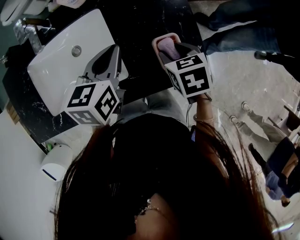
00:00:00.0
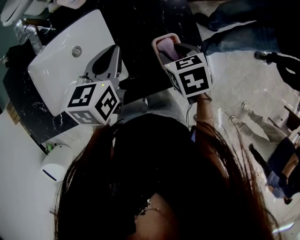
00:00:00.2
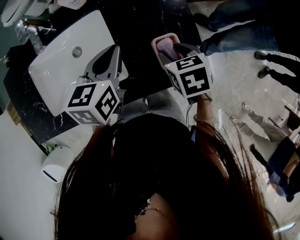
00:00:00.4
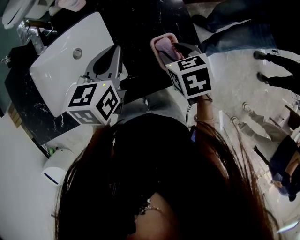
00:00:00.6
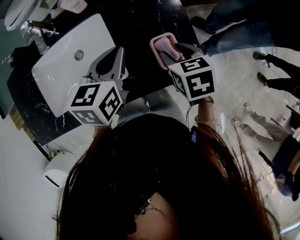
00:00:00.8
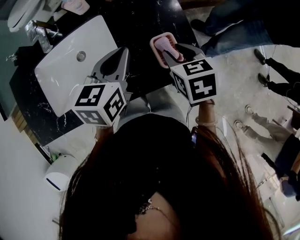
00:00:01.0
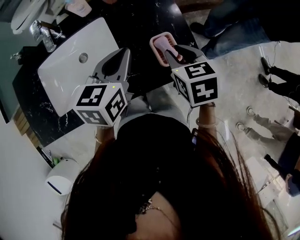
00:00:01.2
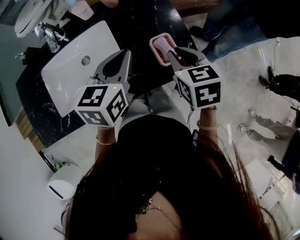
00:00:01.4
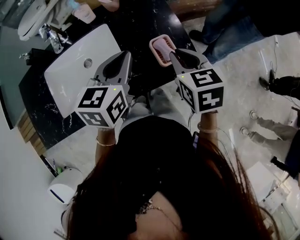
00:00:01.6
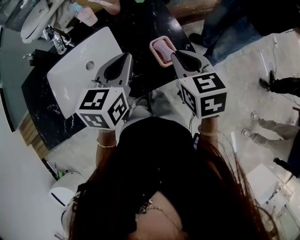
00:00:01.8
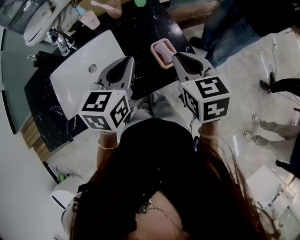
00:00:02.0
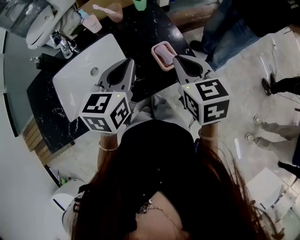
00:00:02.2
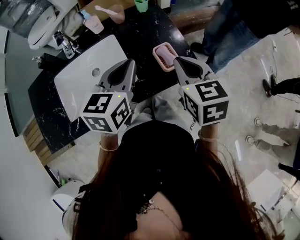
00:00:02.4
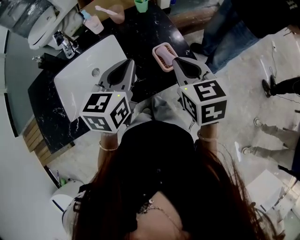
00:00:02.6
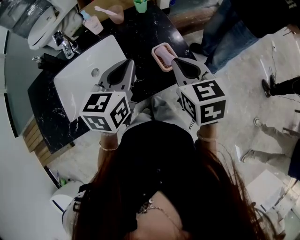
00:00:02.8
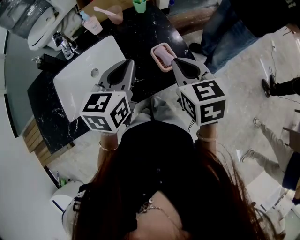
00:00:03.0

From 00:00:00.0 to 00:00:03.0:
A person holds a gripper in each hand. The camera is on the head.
From 00:00:00.0 to 00:00:01.6: Both grippers move upward and backward, some 15 cm. The right gripper swivels roughly 20 degrees, and closes its fingers.
From 00:00:01.6 to 00:00:03.0: The right gripper moves upward, some 5 cm; the left gripper shifts by approximately 5 cm.

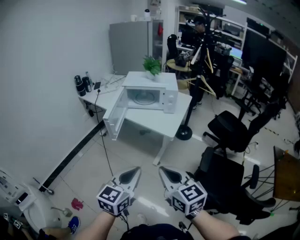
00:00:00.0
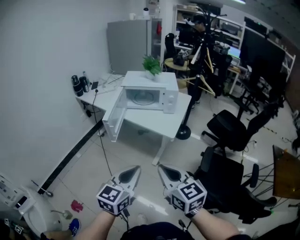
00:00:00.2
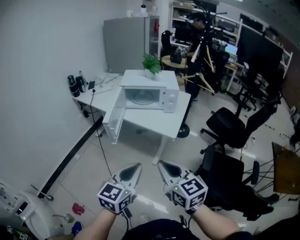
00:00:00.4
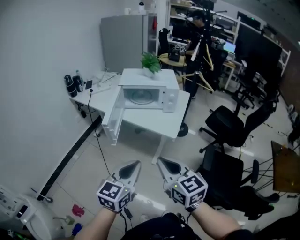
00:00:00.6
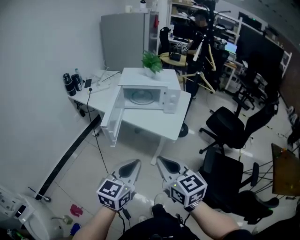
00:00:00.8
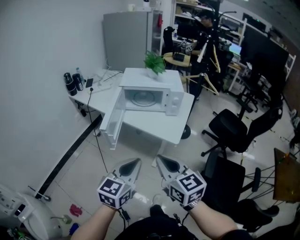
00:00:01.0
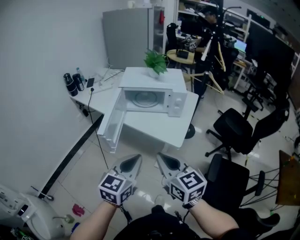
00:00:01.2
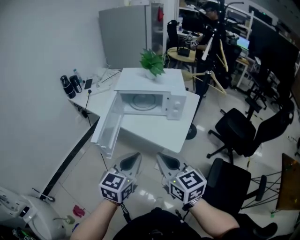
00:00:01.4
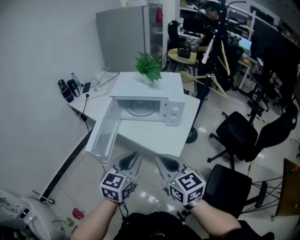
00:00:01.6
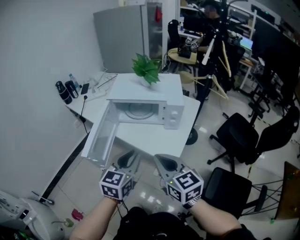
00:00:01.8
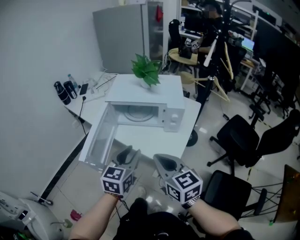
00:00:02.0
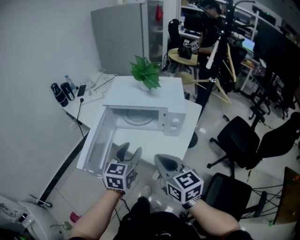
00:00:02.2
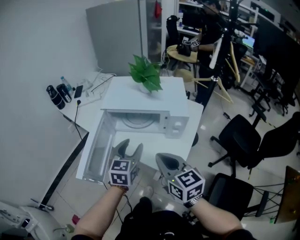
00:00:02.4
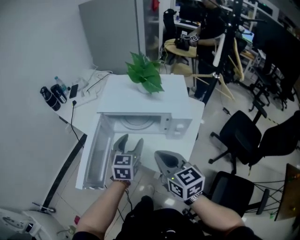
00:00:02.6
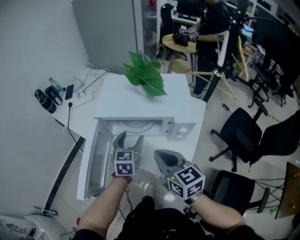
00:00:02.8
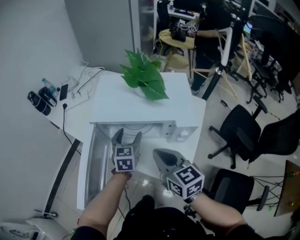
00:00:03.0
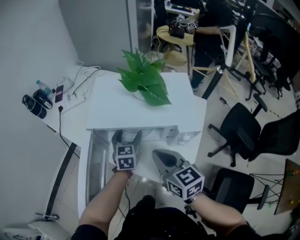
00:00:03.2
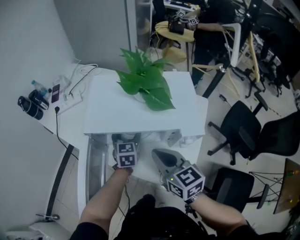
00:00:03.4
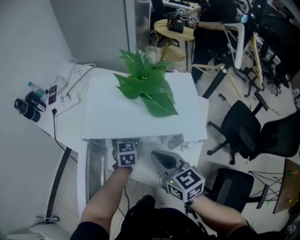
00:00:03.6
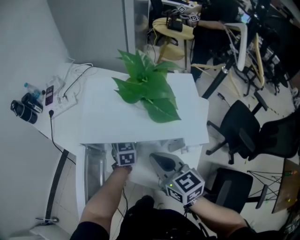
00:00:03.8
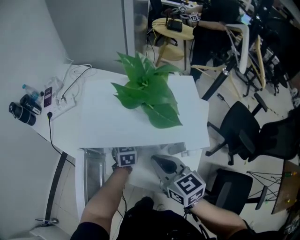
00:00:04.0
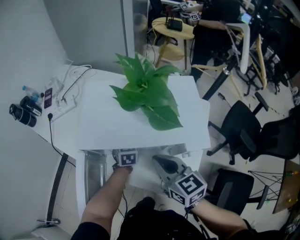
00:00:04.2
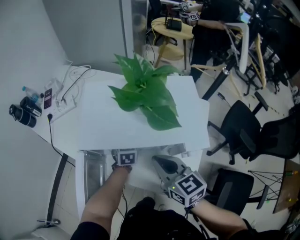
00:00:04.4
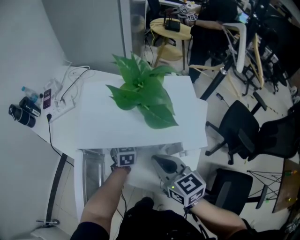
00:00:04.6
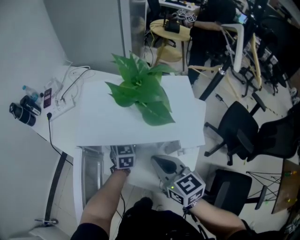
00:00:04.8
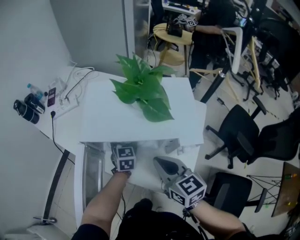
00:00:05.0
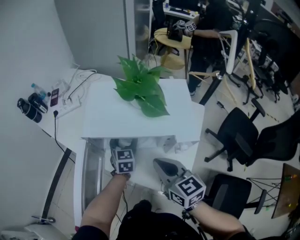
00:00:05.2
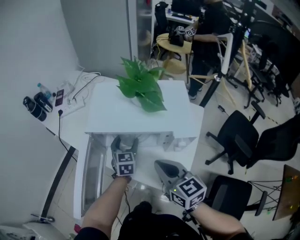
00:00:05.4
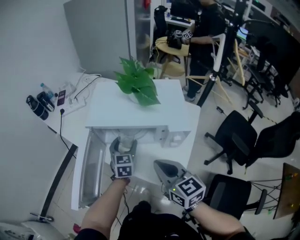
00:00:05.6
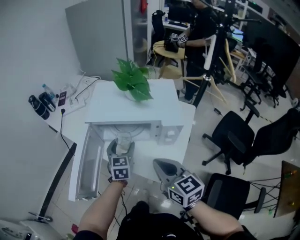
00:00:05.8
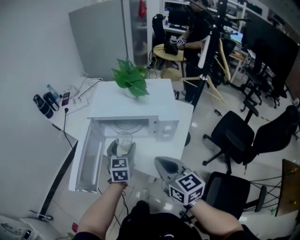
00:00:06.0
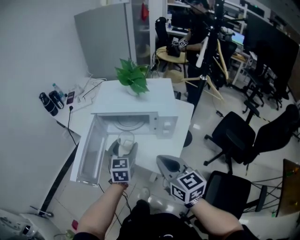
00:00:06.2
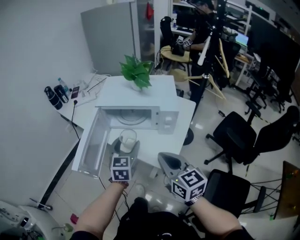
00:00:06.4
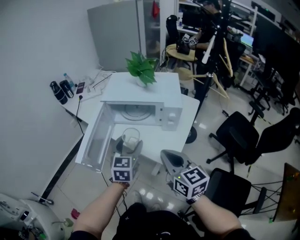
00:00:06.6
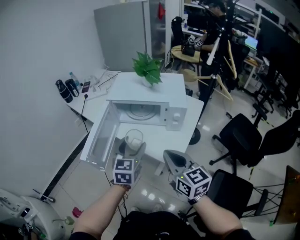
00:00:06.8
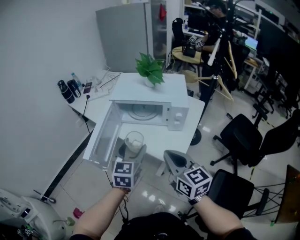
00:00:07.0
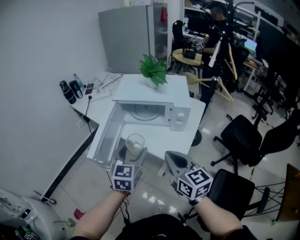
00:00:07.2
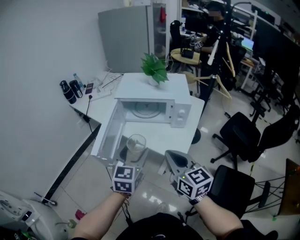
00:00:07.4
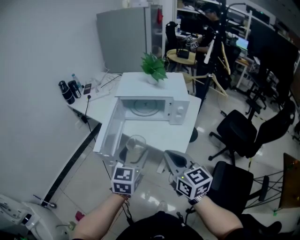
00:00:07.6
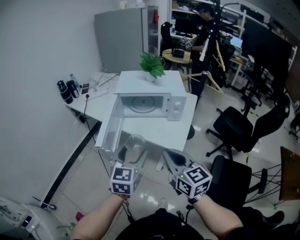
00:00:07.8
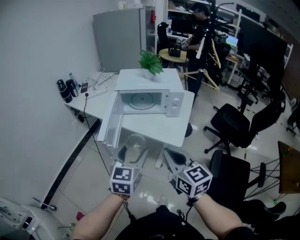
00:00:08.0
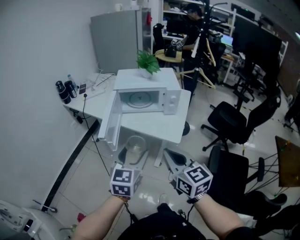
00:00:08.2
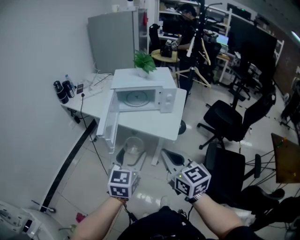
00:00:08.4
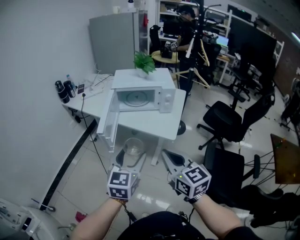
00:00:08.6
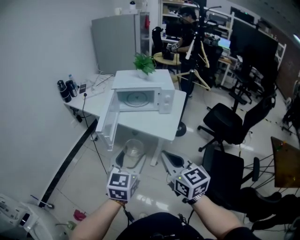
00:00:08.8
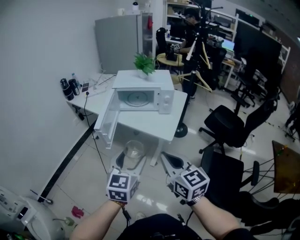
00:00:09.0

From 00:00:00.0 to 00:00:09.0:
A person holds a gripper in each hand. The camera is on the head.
From 00:00:00.0 to 00:00:01.6: The grippers both shift forward by approximately 30 cm.
From 00:00:01.6 to 00:00:03.0: The right gripper goes some 25 cm forward, while the left gripper heads forward and downward, covering approximately 40 cm, and opens.
From 00:00:03.0 to 00:00:04.4: The right gripper goes approximately 10 cm forward. Meanwhile the left gripper moves forward and downward, roughly 15 cm.
From 00:00:04.4 to 00:00:06.0: The right gripper shifts roughly 20 cm backward, while the left gripper heads backward and upward, covering approximately 25 cm.
From 00:00:06.0 to 00:00:07.6: The left gripper goes approximately 25 cm backward and upward. Meanwhile the right gripper travels backward and to the left by about 15 cm.
From 00:00:07.6 to 00:00:09.0: The two grippers go roughly 20 cm backward.

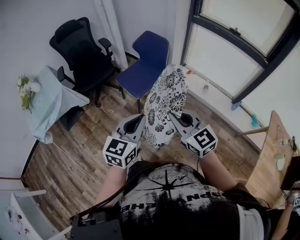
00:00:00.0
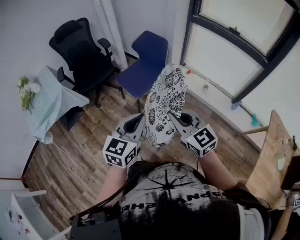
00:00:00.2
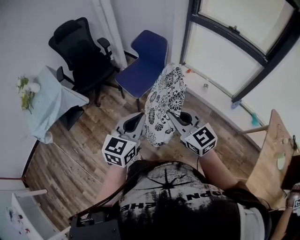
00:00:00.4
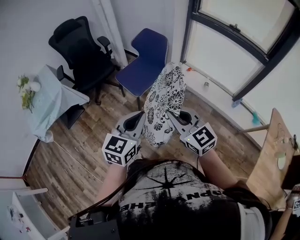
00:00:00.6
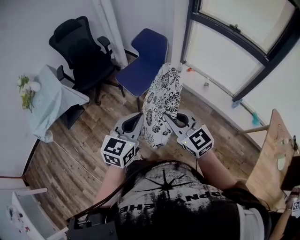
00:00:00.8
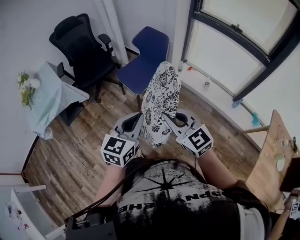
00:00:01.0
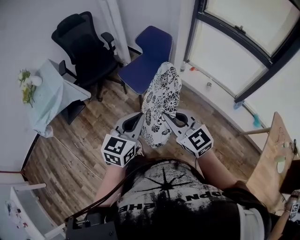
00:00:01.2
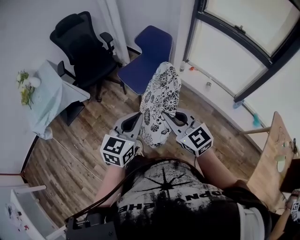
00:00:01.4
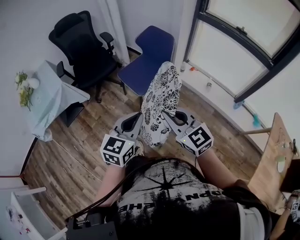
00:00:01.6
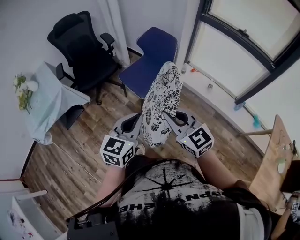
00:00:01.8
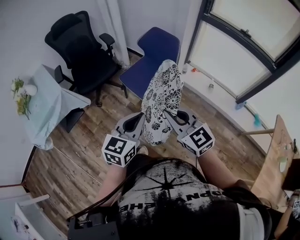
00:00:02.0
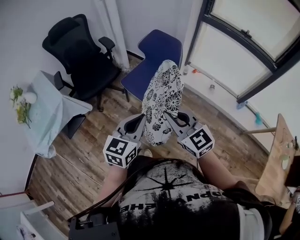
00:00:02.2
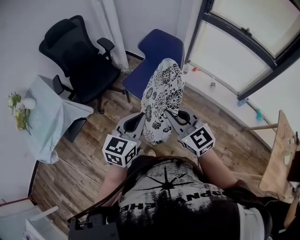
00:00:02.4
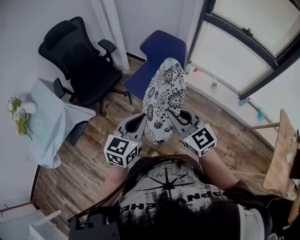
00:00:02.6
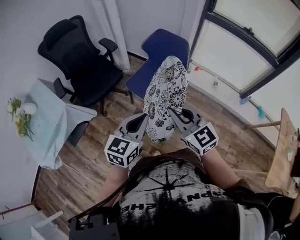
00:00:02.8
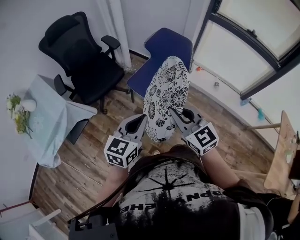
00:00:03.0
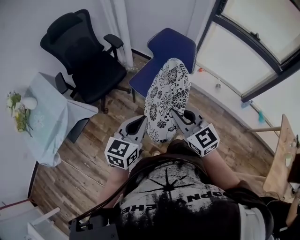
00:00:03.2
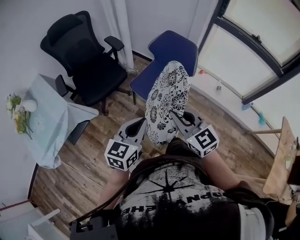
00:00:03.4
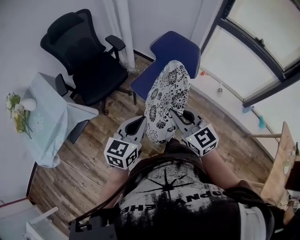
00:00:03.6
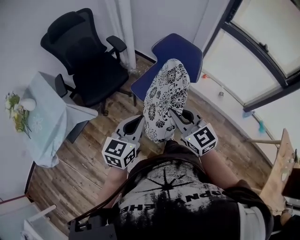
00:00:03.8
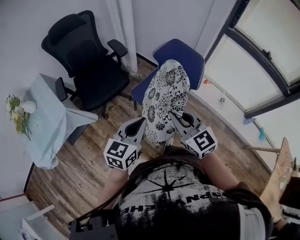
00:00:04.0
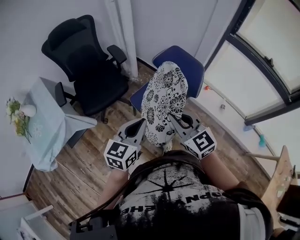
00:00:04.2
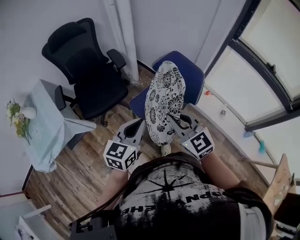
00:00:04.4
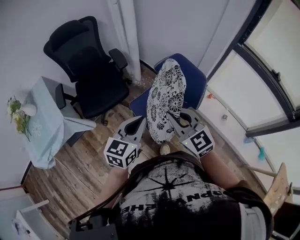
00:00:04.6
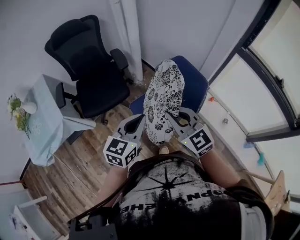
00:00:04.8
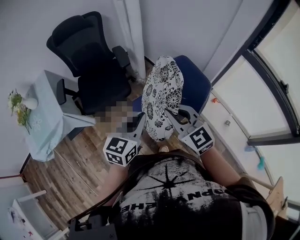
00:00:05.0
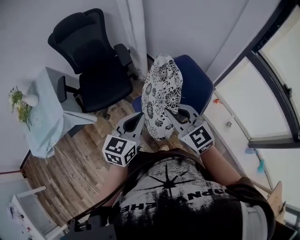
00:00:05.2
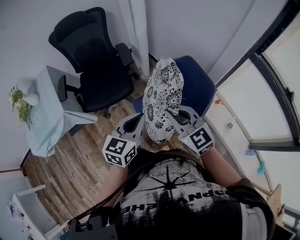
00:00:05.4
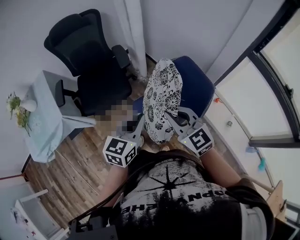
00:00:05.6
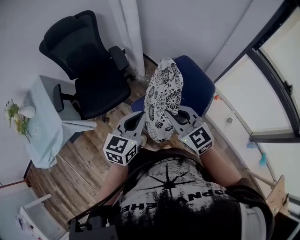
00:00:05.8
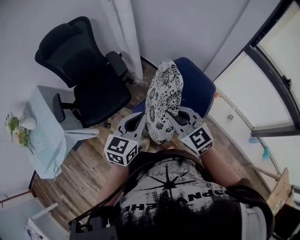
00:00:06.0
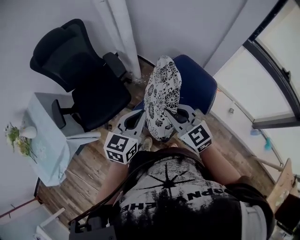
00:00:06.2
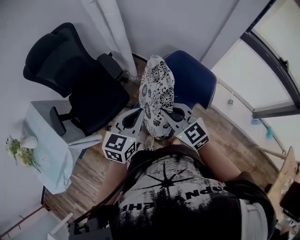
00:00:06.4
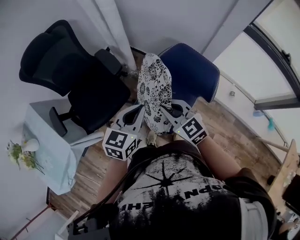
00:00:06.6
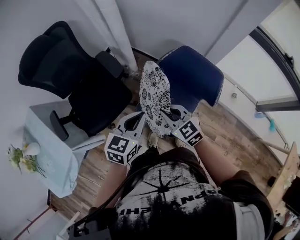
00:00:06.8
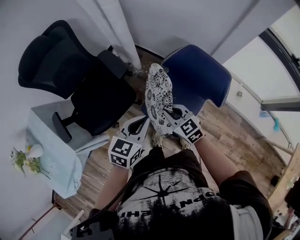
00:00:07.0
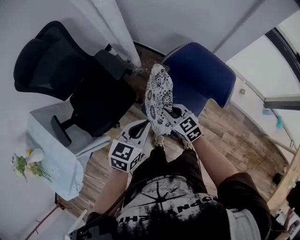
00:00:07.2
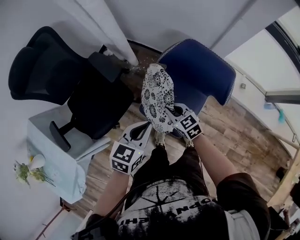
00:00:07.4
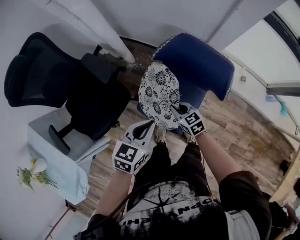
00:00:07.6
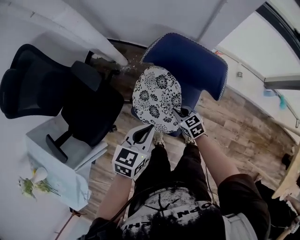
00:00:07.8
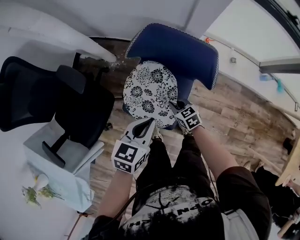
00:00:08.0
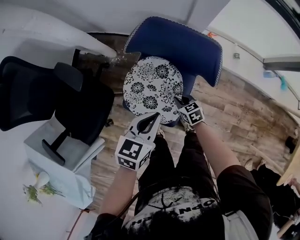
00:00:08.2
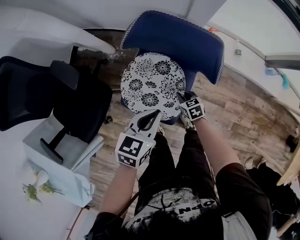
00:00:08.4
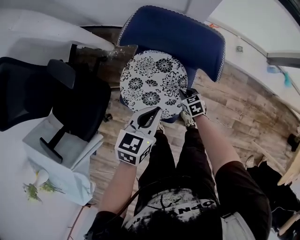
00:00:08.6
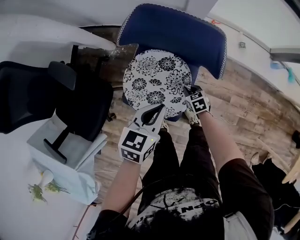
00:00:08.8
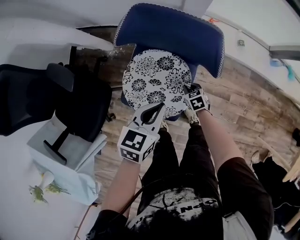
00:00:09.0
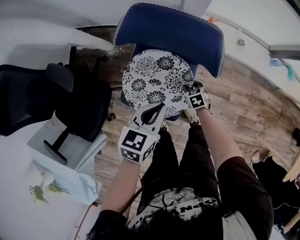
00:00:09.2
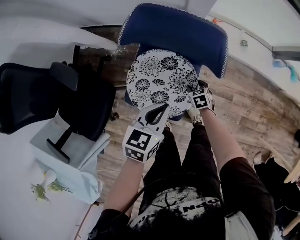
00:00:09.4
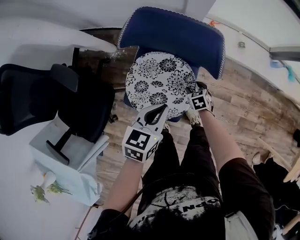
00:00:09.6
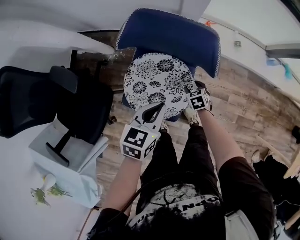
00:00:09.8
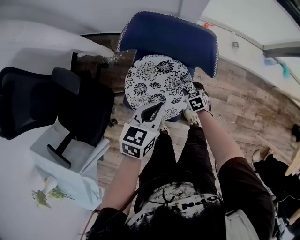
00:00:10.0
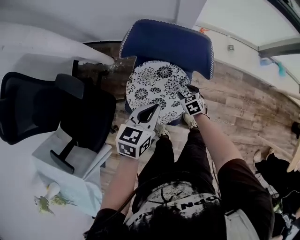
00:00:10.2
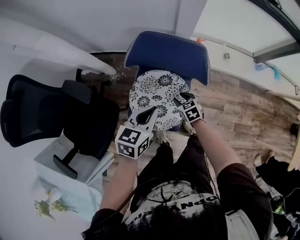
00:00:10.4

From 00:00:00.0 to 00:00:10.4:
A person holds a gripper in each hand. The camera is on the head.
From 00:00:00.0 to 00:00:01.4: The grippers make only small movements.
From 00:00:01.4 to 00:00:03.0: The left gripper is displaced to the left and forward by about 25 cm. Meanwhile the right gripper is displaced forward and to the left by approximately 25 cm.
From 00:00:03.0 to 00:00:04.4: The grippers both shift forward by some 20 cm.
From 00:00:04.4 to 00:00:06.0: Both grippers move forward, some 15 cm.
From 00:00:06.0 to 00:00:07.4: The left gripper shifts roughly 15 cm downward and forward, and changes its angle by about 30 degrees. Meanwhile the right gripper travels downward by roughly 25 cm, and changes its angle by some 30 degrees.
From 00:00:07.4 to 00:00:09.0: The left gripper shifts roughly 20 cm to the right and downward. Meanwhile the right gripper goes approximately 35 cm downward and to the right, and rotates roughly 40 degrees.
From 00:00:09.0 to 00:00:10.4: The right gripper is displaced upward by some 10 cm, and opens up. Meanwhile the left gripper travels upward by approximately 5 cm.

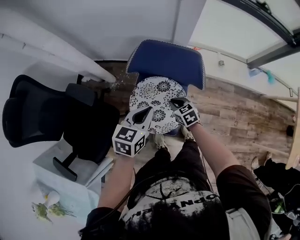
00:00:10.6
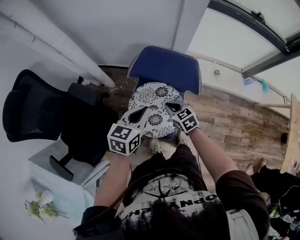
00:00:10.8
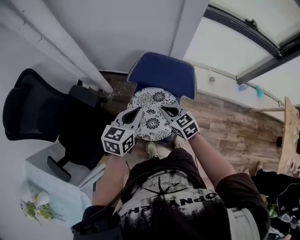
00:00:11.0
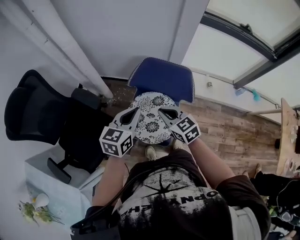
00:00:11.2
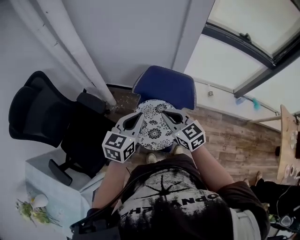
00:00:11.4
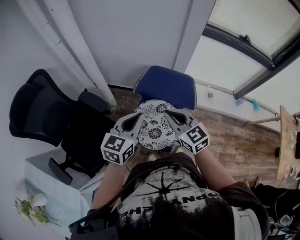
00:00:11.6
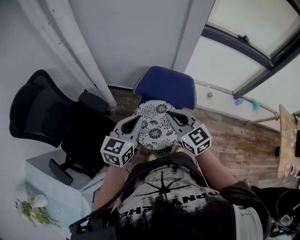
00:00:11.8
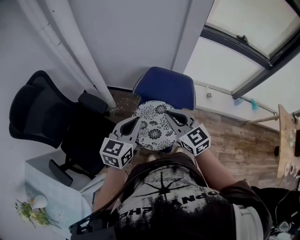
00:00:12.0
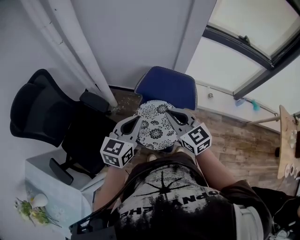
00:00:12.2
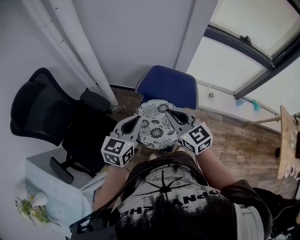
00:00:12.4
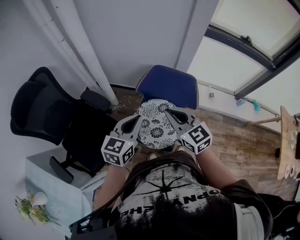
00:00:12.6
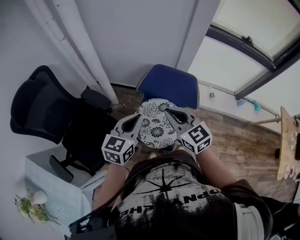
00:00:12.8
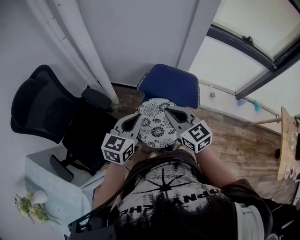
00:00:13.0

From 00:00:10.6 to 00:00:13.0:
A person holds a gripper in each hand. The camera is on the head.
From 00:00:10.6 to 00:00:11.8: The right gripper travels upward by roughly 30 cm, and angles its fingers upward, by some 30 degrees. The left gripper goes roughly 15 cm upward and to the left.
From 00:00:11.8 to 00:00:13.0: The grippers move only a little.
